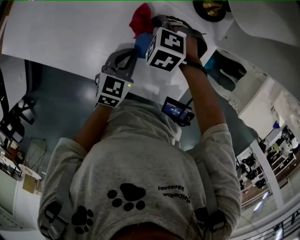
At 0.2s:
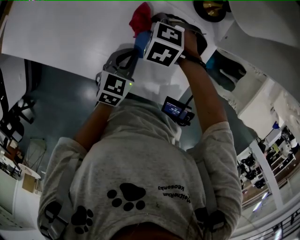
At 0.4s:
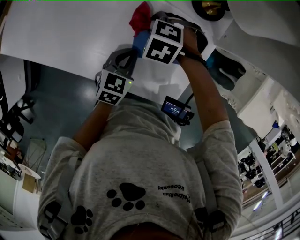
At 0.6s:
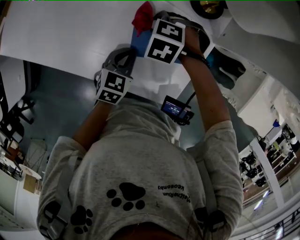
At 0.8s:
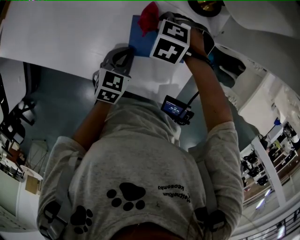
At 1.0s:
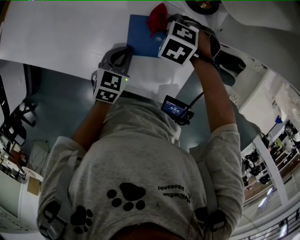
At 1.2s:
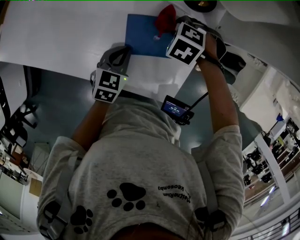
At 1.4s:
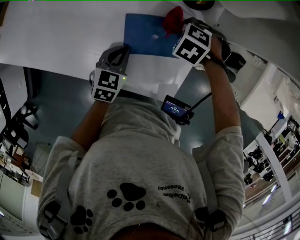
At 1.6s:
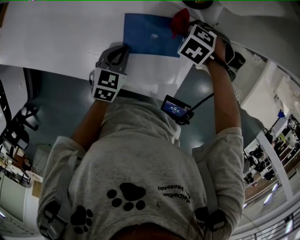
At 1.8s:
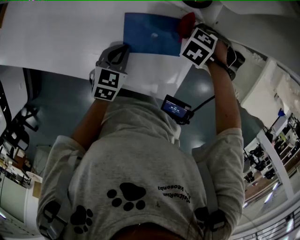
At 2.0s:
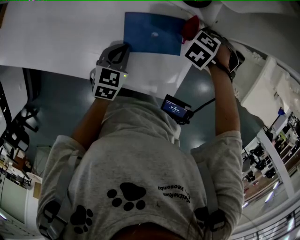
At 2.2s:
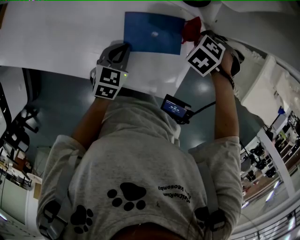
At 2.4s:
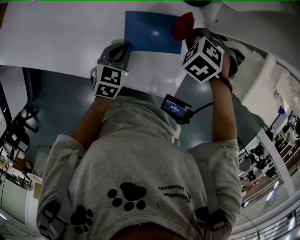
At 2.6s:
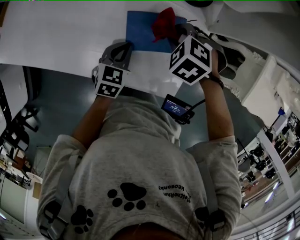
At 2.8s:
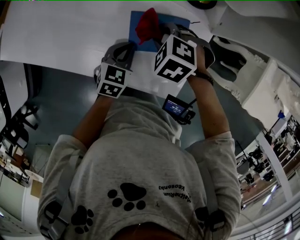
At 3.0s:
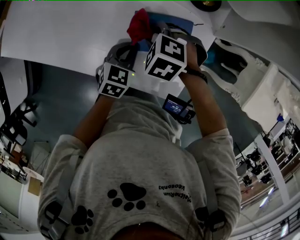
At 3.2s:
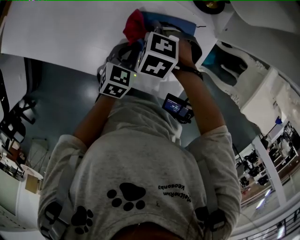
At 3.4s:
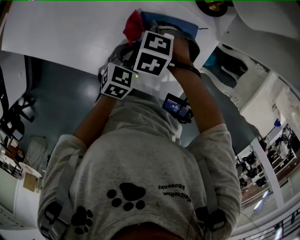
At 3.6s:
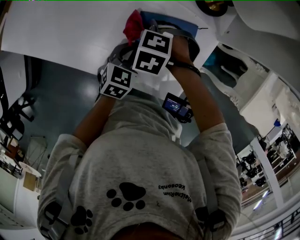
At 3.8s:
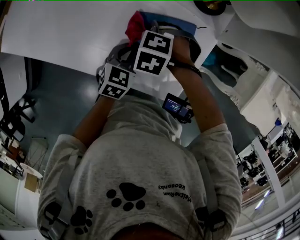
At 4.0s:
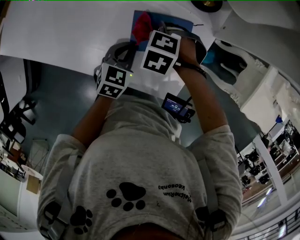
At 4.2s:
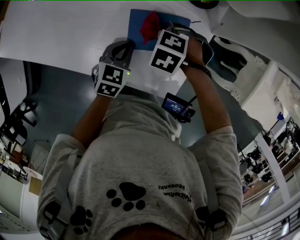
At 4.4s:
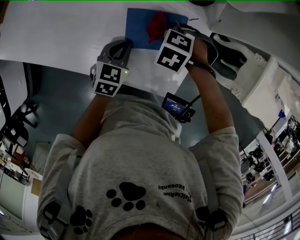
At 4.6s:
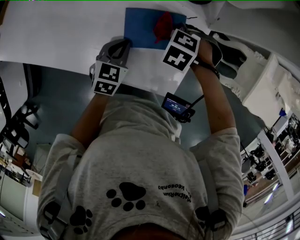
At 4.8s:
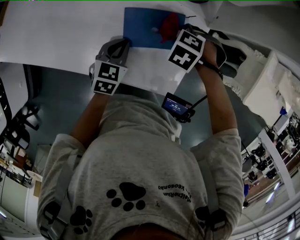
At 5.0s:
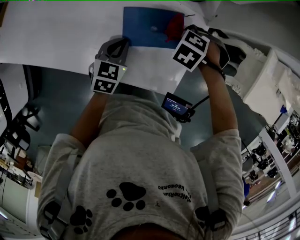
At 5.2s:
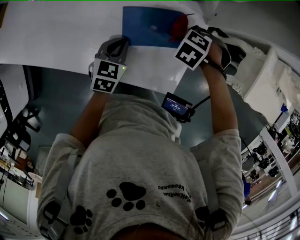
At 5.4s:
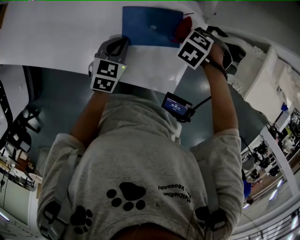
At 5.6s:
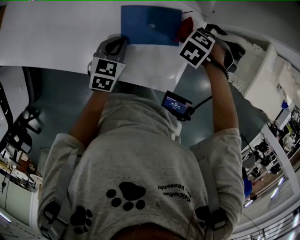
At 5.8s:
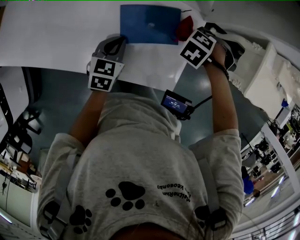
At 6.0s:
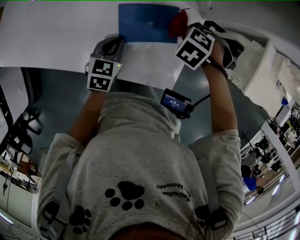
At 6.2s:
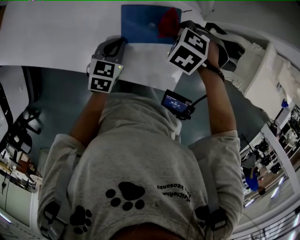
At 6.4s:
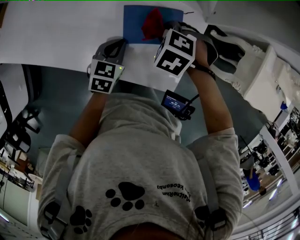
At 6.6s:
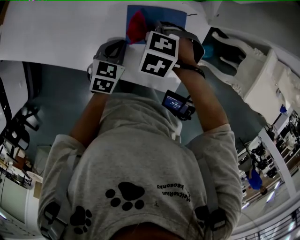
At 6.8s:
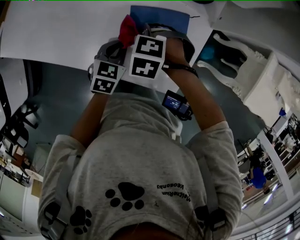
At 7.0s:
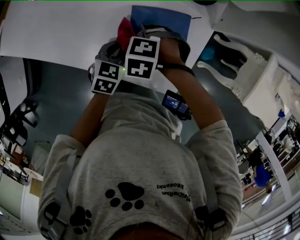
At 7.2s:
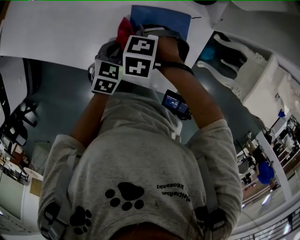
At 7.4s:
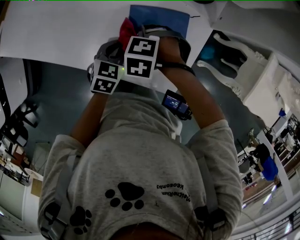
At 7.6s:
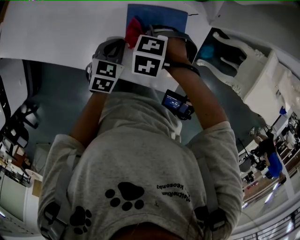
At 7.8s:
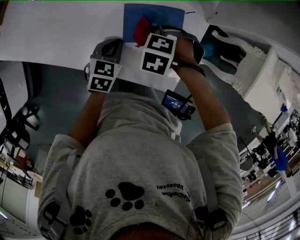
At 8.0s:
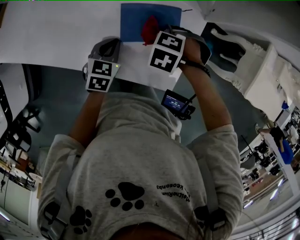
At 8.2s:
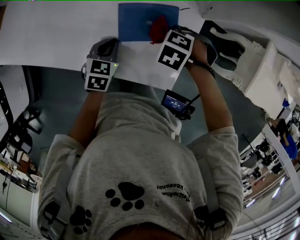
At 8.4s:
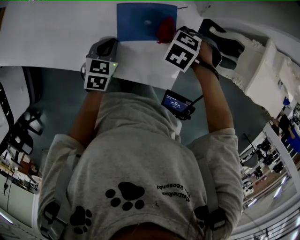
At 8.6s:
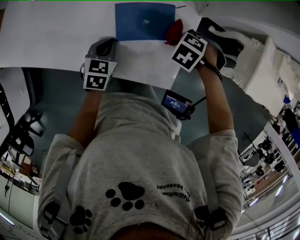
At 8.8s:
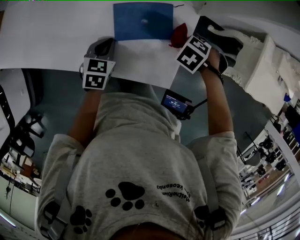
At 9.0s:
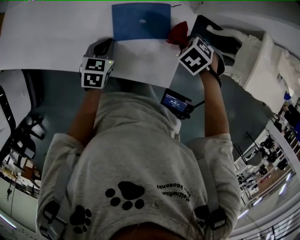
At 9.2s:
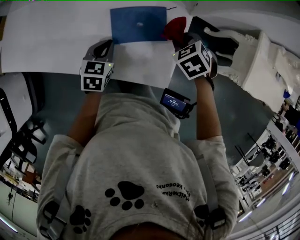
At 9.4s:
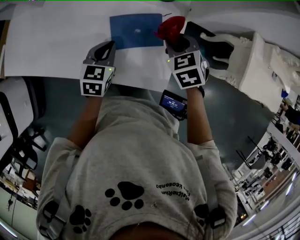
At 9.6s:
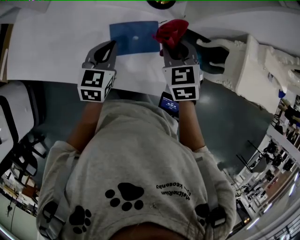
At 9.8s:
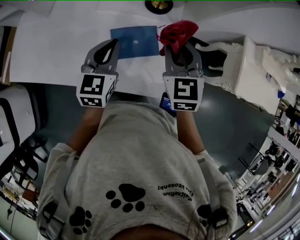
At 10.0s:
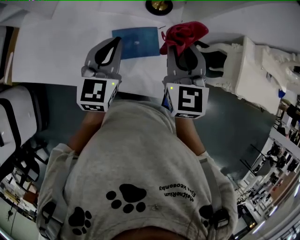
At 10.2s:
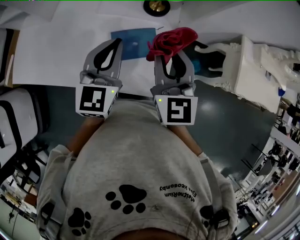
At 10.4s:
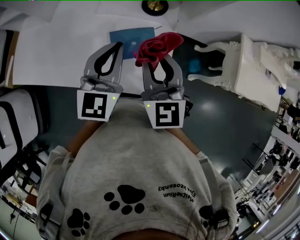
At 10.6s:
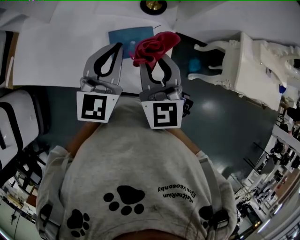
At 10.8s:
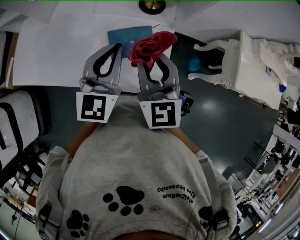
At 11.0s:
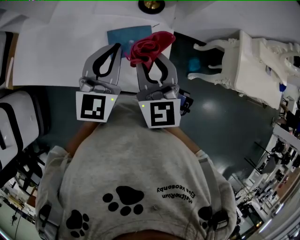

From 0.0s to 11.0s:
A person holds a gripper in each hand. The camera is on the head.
From 0.0s to 1.6s: The right gripper ends up approximately 15 cm from where it was, and rotates approximately 20 degrees.
From 1.6s to 3.2s: The right gripper shifts by about 20 cm.
From 3.2s to 4.8s: The right gripper ends up roughly 15 cm from where it was.
From 7.8s to 9.4s: Both grippers move upward, roughly 10 cm. The right gripper angles its fingers upward, by about 30 degrees.
From 9.4s to 11.0s: The grippers both shift upward by roughly 20 cm. The left gripper tilts its fingers about 30 degrees upward. Meanwhile the right gripper points its fingers approximately 50 degrees further upward.

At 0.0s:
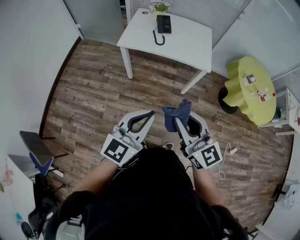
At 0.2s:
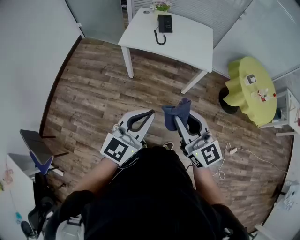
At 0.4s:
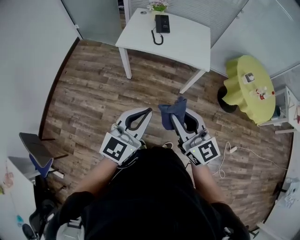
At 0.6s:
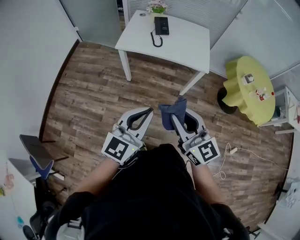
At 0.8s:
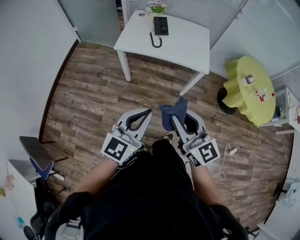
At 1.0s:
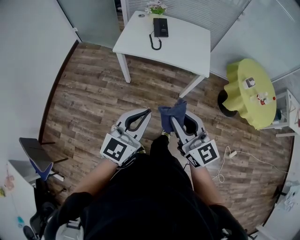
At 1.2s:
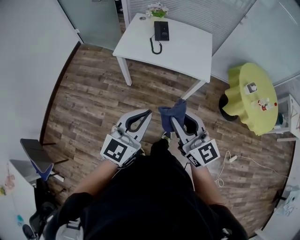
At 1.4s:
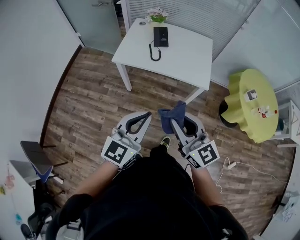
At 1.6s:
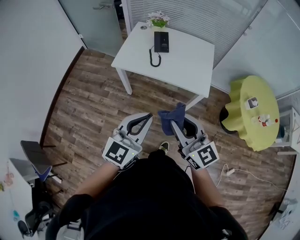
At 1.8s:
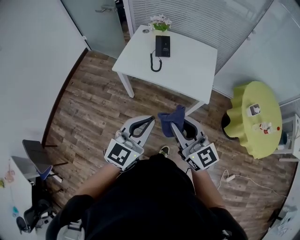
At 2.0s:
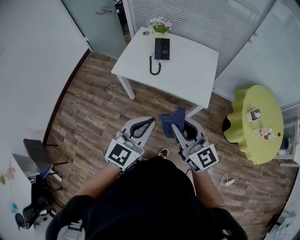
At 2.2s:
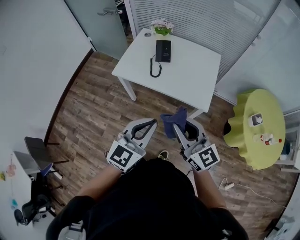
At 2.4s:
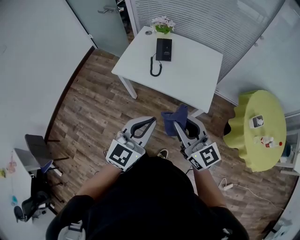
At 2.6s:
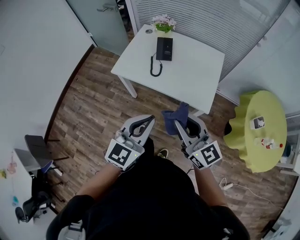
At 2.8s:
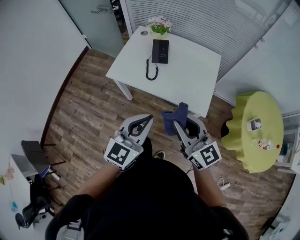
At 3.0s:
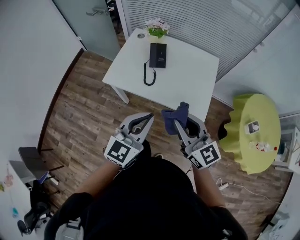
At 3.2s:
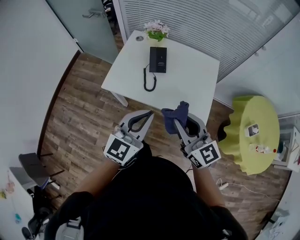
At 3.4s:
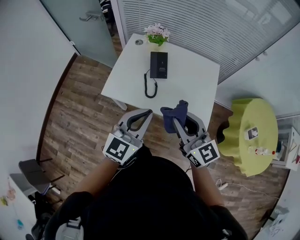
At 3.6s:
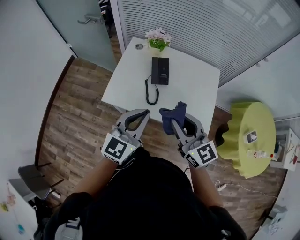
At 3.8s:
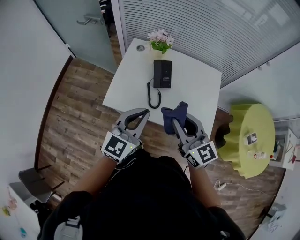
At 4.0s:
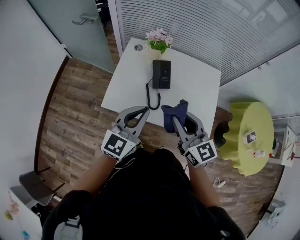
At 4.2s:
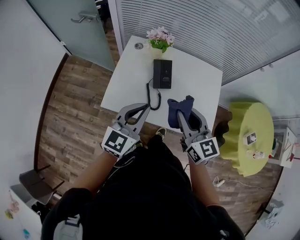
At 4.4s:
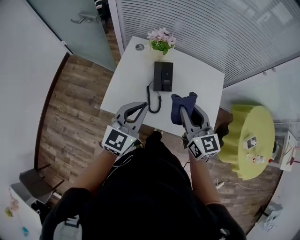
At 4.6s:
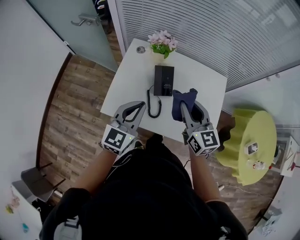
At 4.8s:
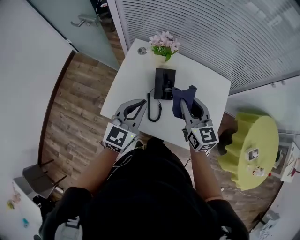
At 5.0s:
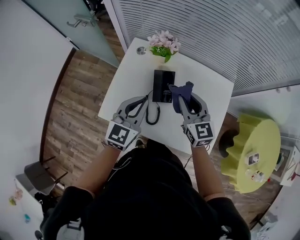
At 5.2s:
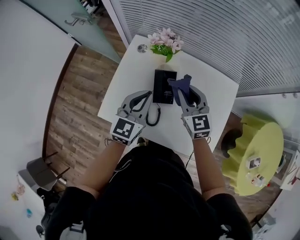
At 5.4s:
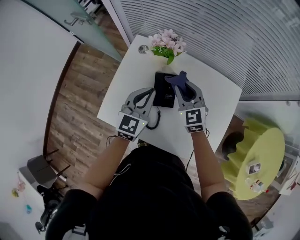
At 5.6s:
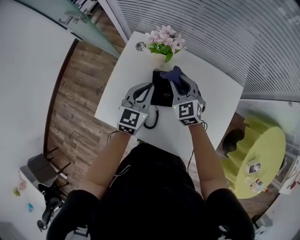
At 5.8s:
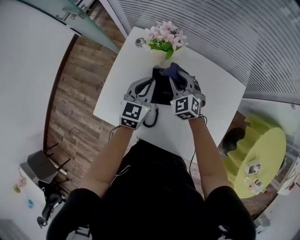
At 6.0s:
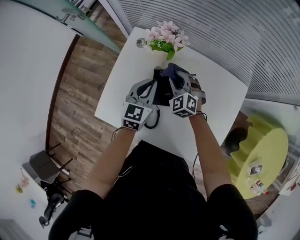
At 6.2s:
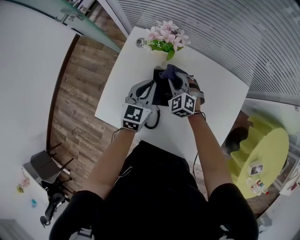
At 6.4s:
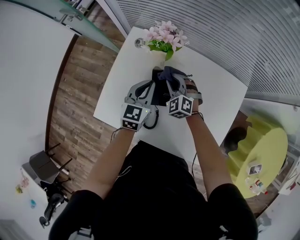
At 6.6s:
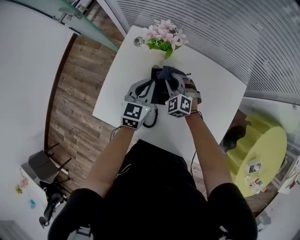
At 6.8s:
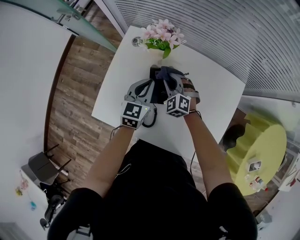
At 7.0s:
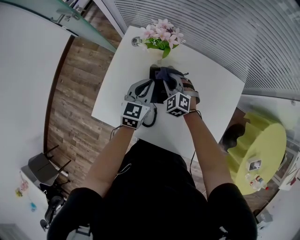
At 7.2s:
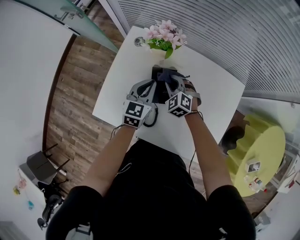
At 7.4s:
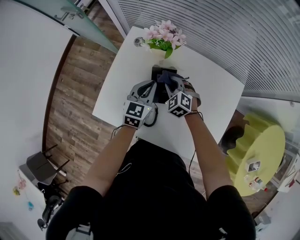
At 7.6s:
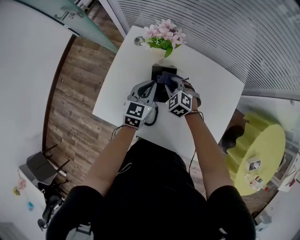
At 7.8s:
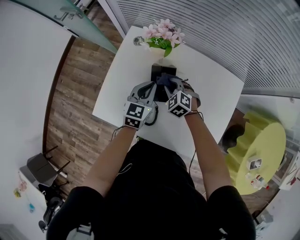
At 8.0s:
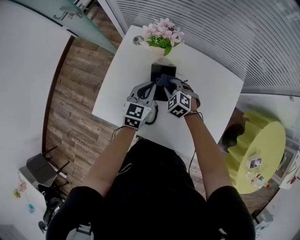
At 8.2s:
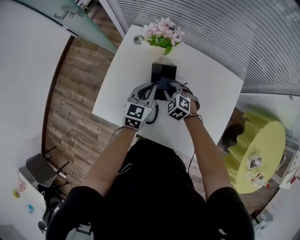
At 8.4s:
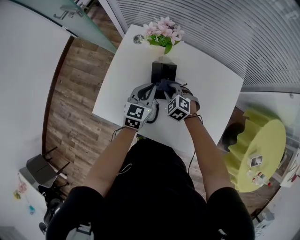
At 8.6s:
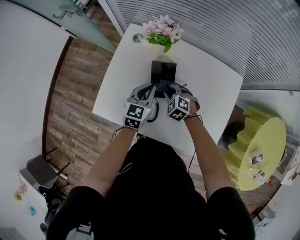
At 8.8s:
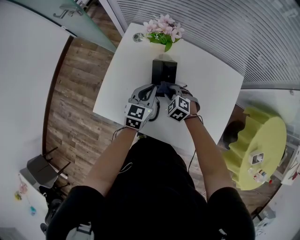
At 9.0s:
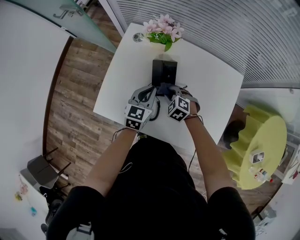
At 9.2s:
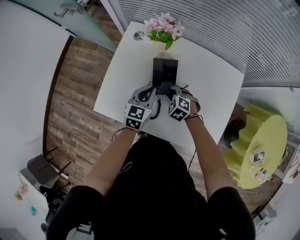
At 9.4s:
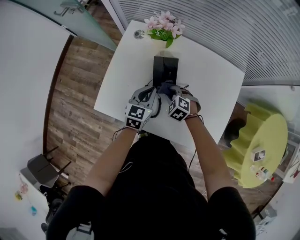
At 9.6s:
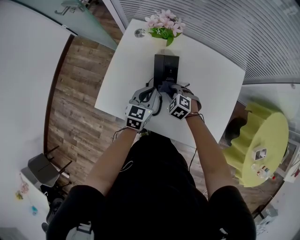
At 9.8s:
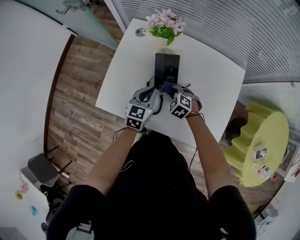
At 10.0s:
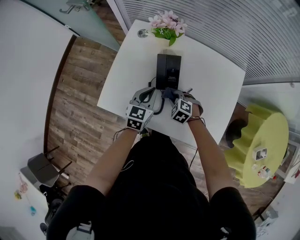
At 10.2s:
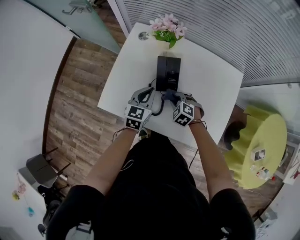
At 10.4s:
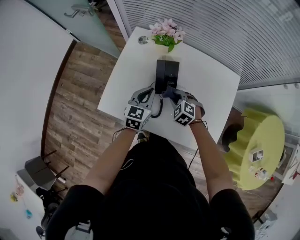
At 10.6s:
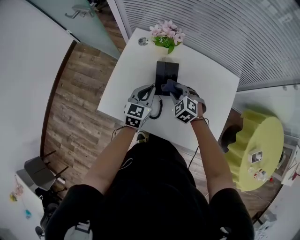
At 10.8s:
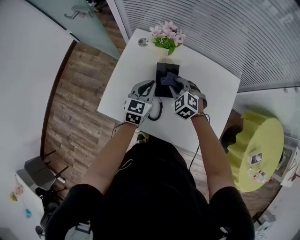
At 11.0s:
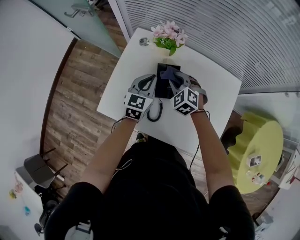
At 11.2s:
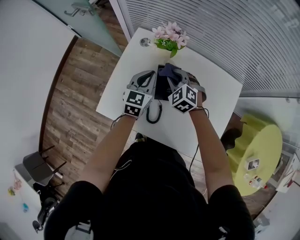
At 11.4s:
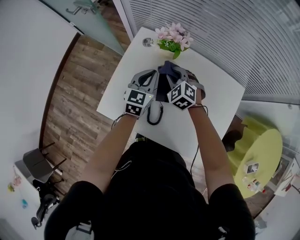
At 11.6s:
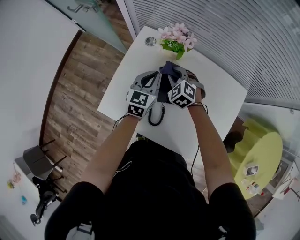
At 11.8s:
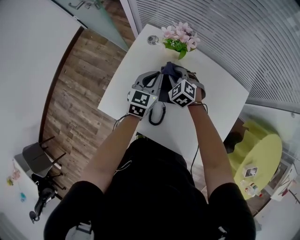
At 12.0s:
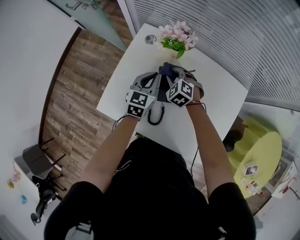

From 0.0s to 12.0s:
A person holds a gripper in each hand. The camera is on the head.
From 0.0s to 1.6s: The left gripper travels forward and to the right by some 20 cm. The right gripper moves forward, some 15 cm.
From 1.6s to 3.0s: The left gripper goes approximately 20 cm forward, while the right gripper is displaced forward and to the right by roughly 20 cm.
From 3.0s to 4.4s: The left gripper shifts roughly 30 cm forward and to the left; the right gripper is displaced forward by about 25 cm.
From 4.4s to 6.0s: The grippers both shift forward and downward by roughly 35 cm. The right gripper rolls counterclockwise, seen from behind, by about 50 degrees, while the left gripper changes its angle by about 20 degrees.
From 6.0s to 7.6s: The right gripper changes place by some 5 cm.
From 7.6s to 9.0s: The left gripper travels backward by about 5 cm, while the right gripper heads backward, covering roughly 10 cm.
From 9.0s to 10.4s: The right gripper changes place by some 5 cm.
From 10.4s to 12.0s: Both grippers travel together forward, roughly 15 cm.

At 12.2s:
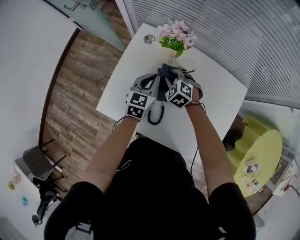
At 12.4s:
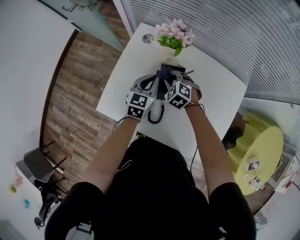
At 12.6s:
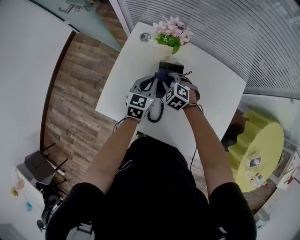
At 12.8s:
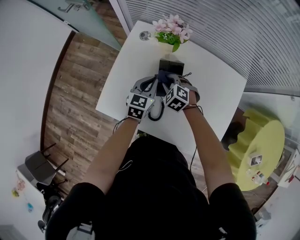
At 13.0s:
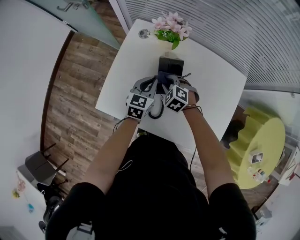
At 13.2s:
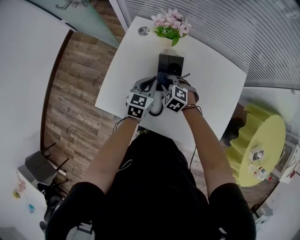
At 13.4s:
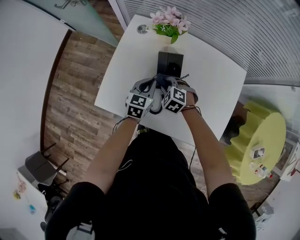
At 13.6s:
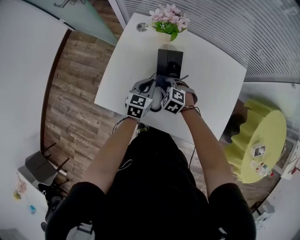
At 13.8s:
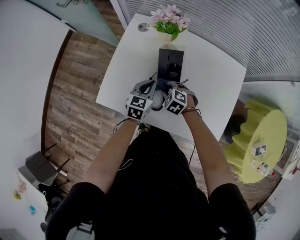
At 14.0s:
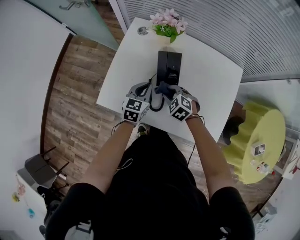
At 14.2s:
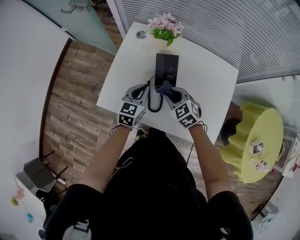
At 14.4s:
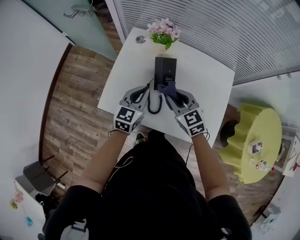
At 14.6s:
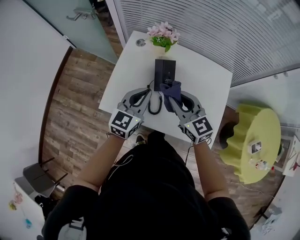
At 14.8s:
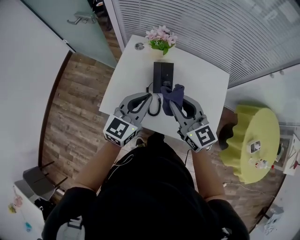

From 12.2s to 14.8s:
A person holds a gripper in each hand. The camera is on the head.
From 12.2s to 13.4s: The left gripper is displaced backward and downward by approximately 10 cm; the right gripper shifts some 10 cm backward.
From 13.4s to 14.8s: The right gripper goes roughly 30 cm upward, and angles its fingers upward, by approximately 50 degrees, while the left gripper is displaced upward and backward by approximately 25 cm, and changes its angle by roughly 30 degrees.
